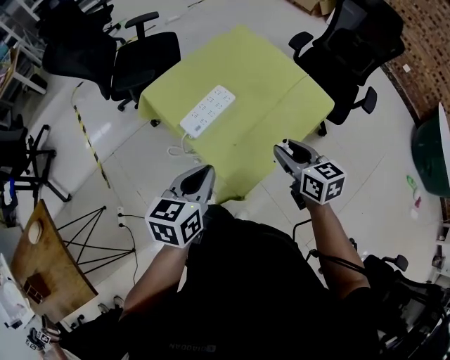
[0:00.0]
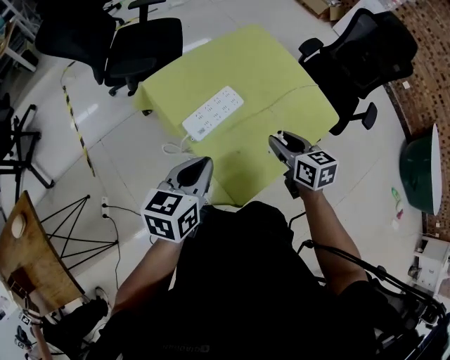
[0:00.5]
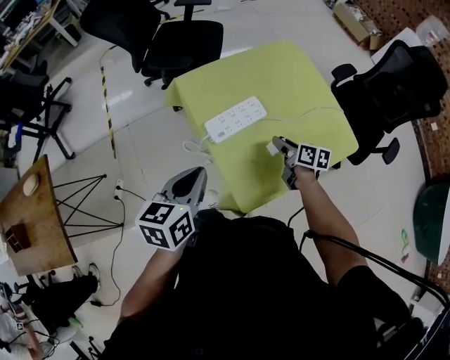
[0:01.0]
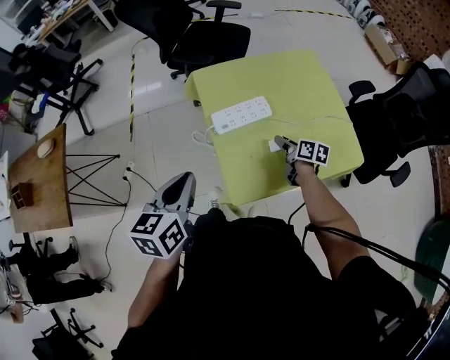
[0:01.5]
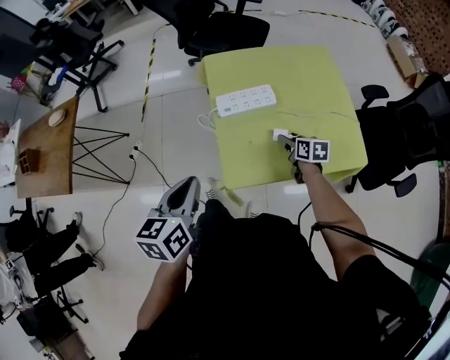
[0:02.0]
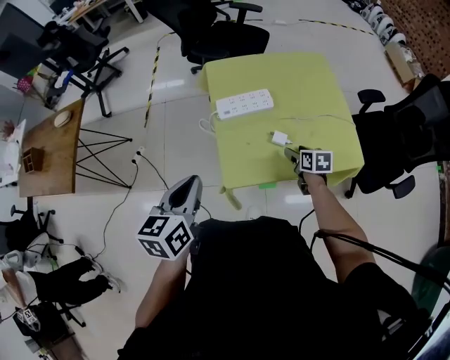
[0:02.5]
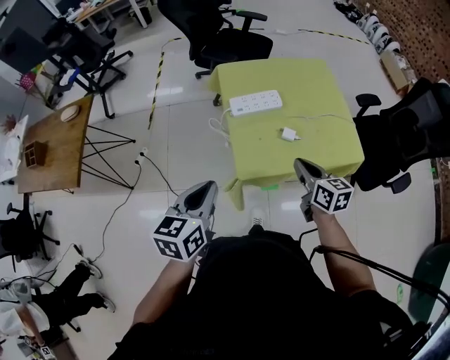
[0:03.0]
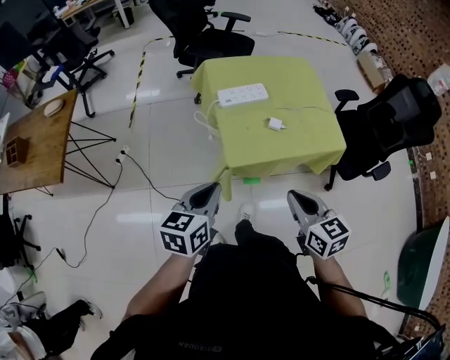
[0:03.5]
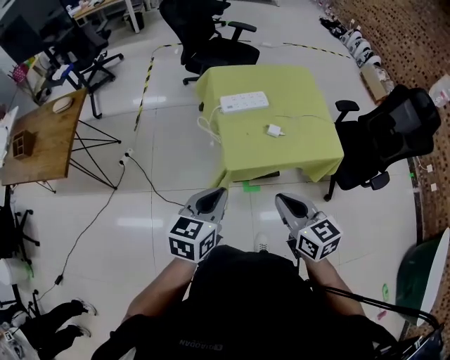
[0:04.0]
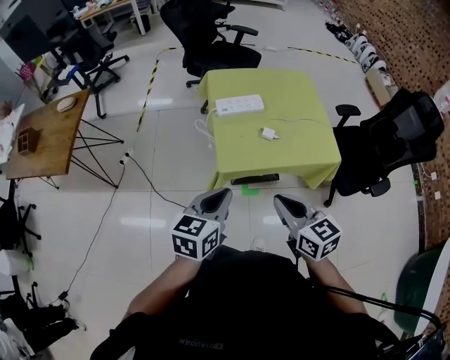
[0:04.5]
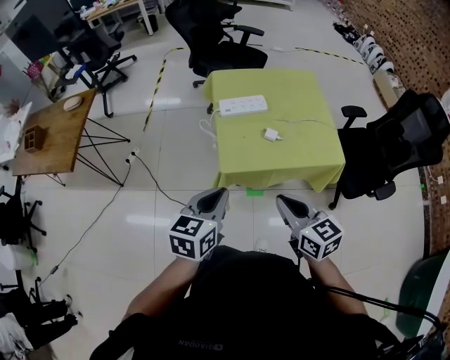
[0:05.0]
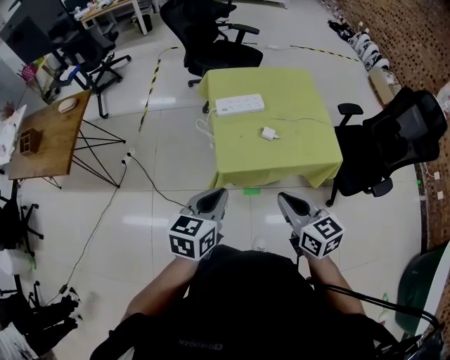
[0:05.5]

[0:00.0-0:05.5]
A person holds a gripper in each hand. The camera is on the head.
0:00.0 to 0:02.0: The right gripper goes approximately 20 cm downward, changes its angle by roughly 30 degrees, and opens. The left gripper shifts by roughly 10 cm, and rotates roughly 40 degrees.
0:02.0 to 0:03.5: The right gripper shifts about 40 cm backward and upward, rotates some 30 degrees, and closes. Meanwhile the left gripper moves backward, approximately 15 cm.
0:03.5 to 0:05.5: The left gripper shifts about 10 cm to the right.

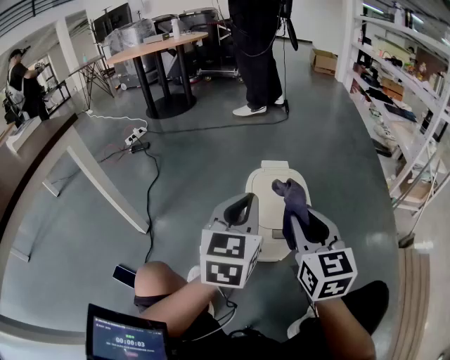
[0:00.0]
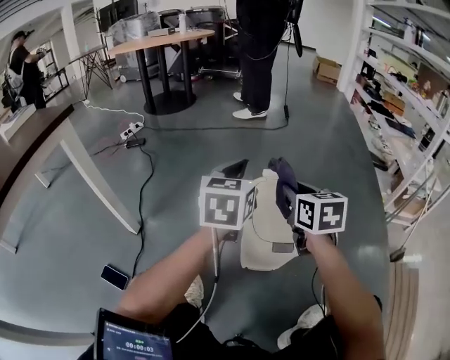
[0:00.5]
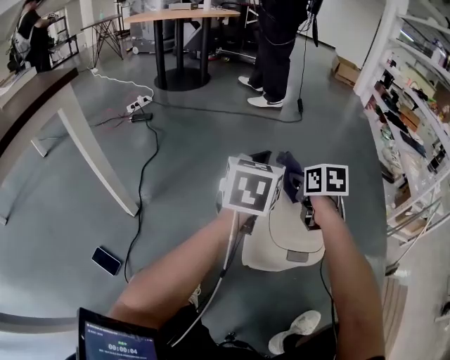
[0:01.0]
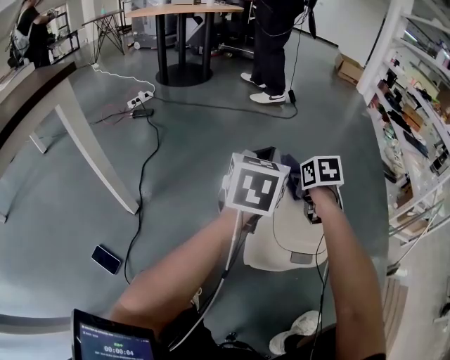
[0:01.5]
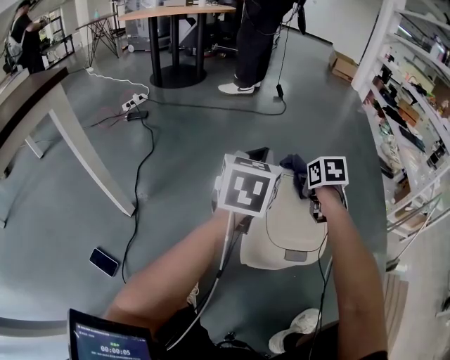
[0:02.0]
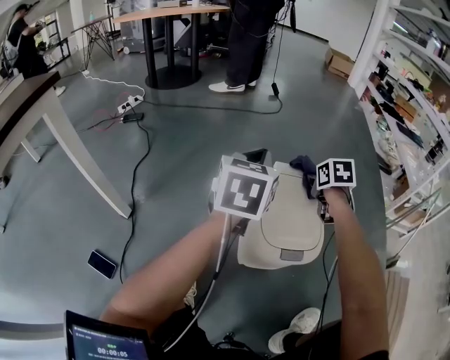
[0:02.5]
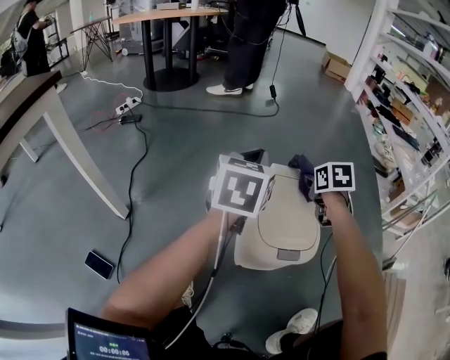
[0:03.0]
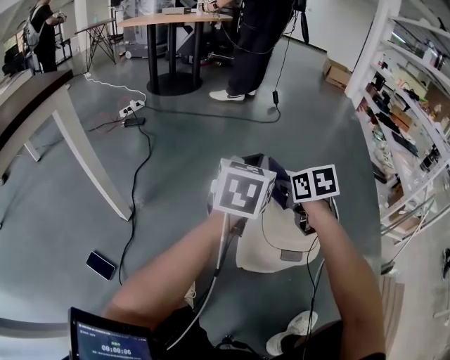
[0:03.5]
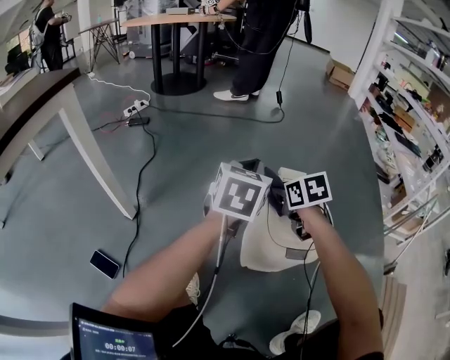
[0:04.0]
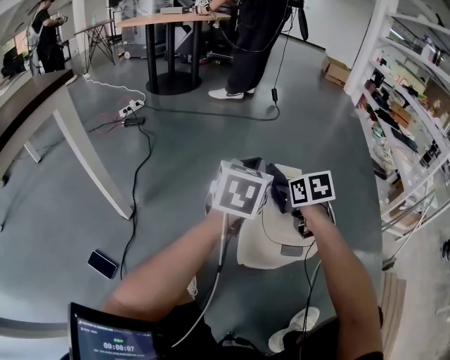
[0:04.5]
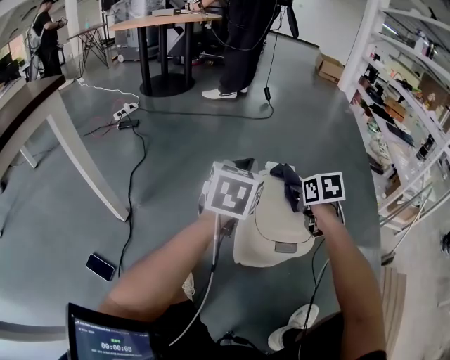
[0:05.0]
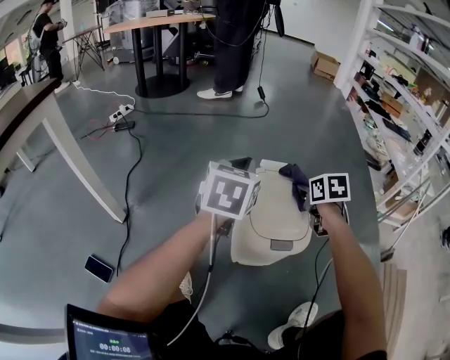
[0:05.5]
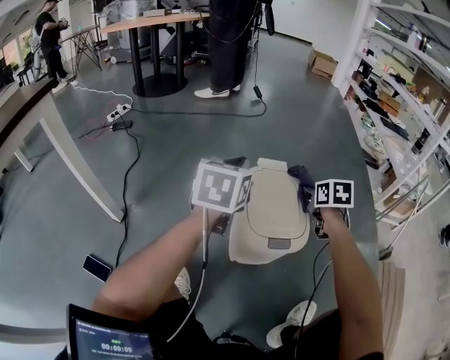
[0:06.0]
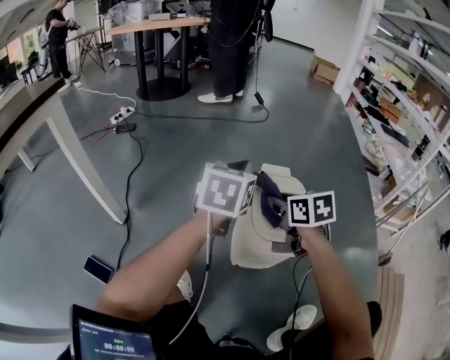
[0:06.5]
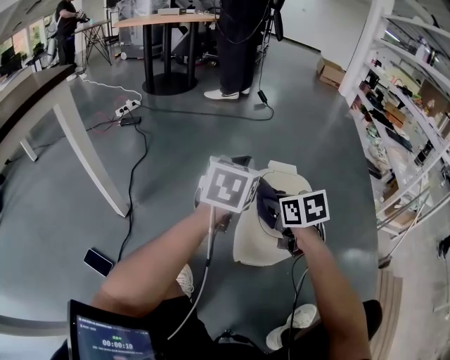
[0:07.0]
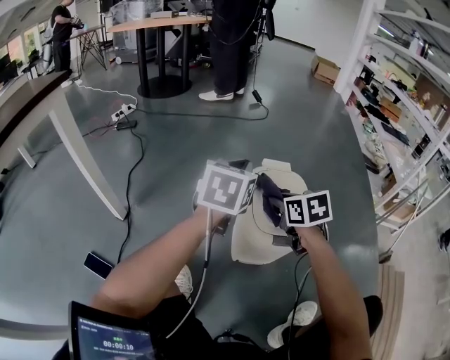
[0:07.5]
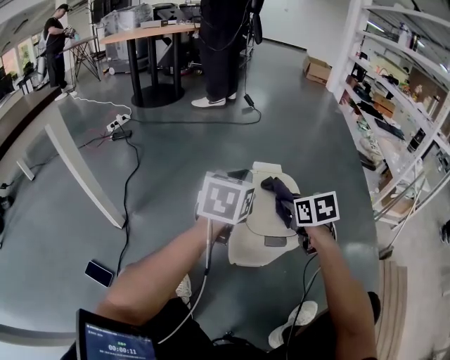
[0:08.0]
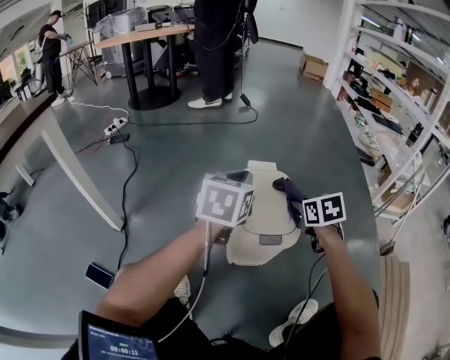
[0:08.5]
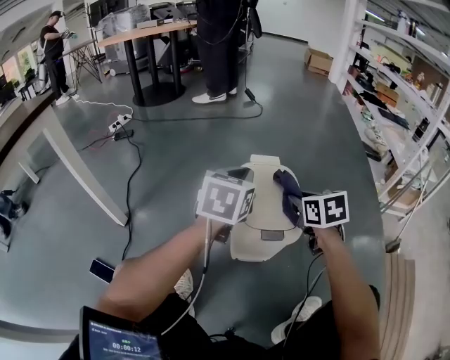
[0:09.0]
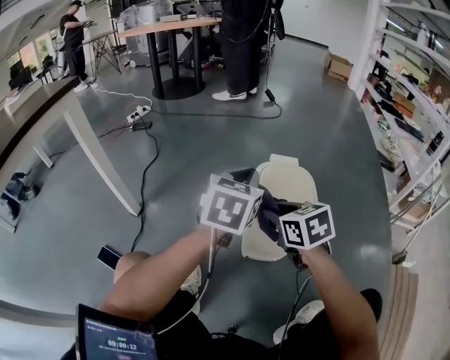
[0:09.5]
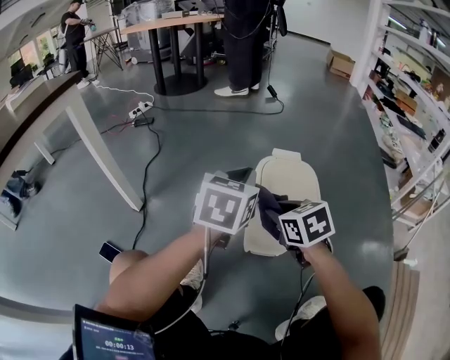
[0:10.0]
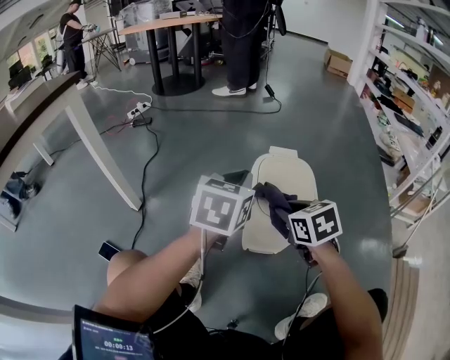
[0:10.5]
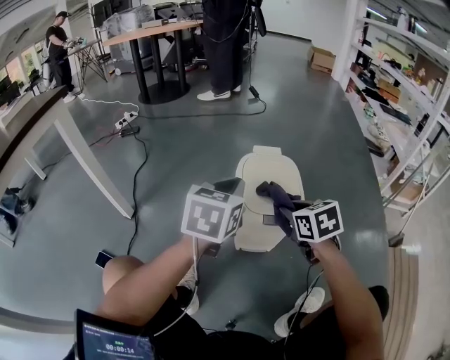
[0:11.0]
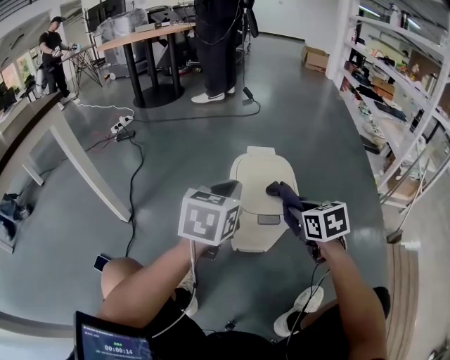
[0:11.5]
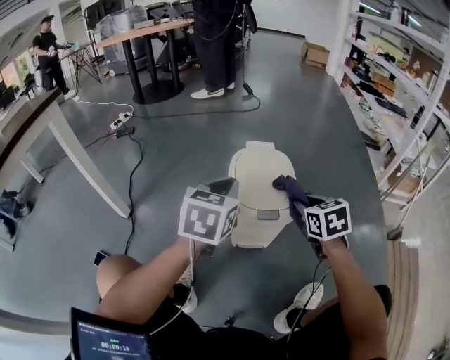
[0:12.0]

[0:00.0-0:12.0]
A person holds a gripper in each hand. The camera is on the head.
0:00.0 to 0:02.0: The right gripper shifts about 30 cm forward and downward, and points its fingers about 40 degrees further downward. The left gripper is displaced forward by approximately 15 cm.
0:02.0 to 0:04.0: The right gripper moves to the left and backward, roughly 10 cm.
0:04.0 to 0:06.0: The right gripper moves to the right, about 20 cm, and turns by approximately 20 degrees.
0:06.0 to 0:08.0: The right gripper travels to the left and backward by approximately 10 cm.
0:08.0 to 0:10.0: The left gripper travels backward by about 5 cm. The right gripper shifts roughly 15 cm to the left and backward.
0:10.0 to 0:12.0: The right gripper moves to the right, roughly 15 cm; the left gripper changes place by roughly 5 cm.

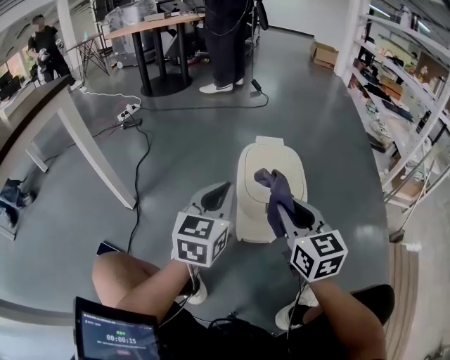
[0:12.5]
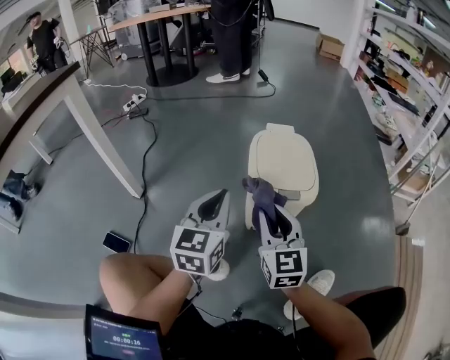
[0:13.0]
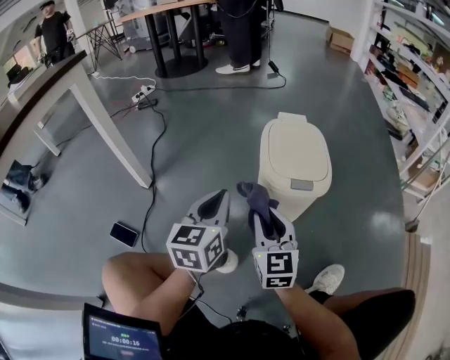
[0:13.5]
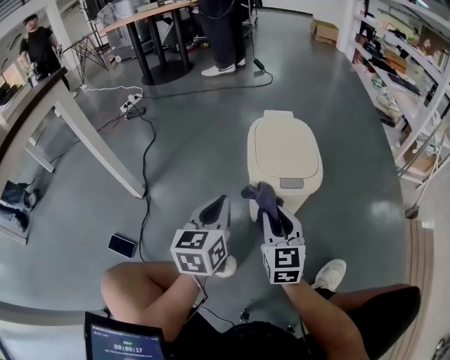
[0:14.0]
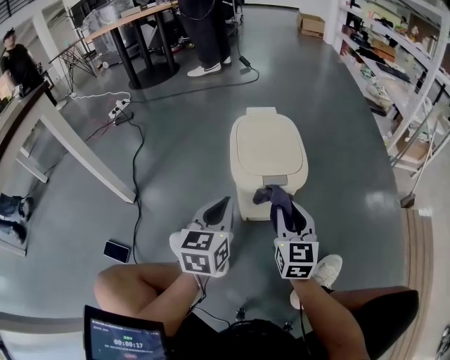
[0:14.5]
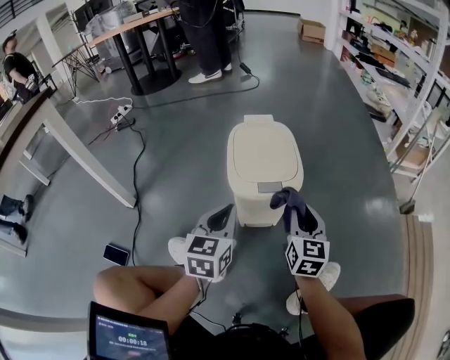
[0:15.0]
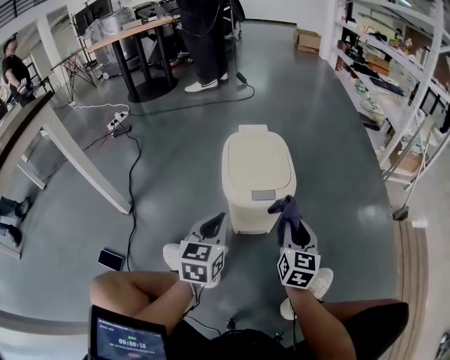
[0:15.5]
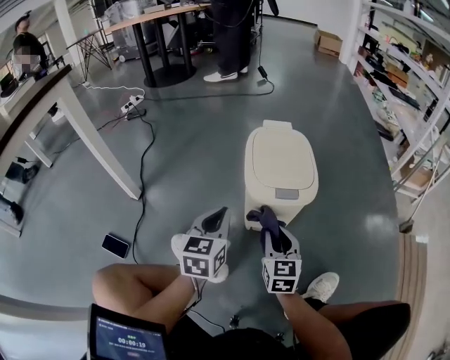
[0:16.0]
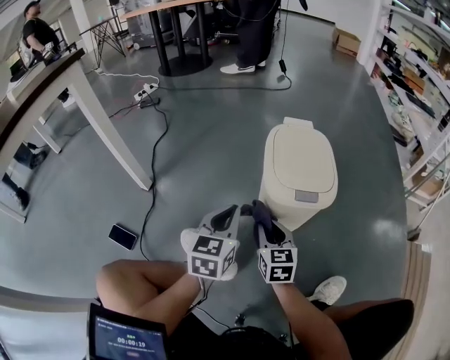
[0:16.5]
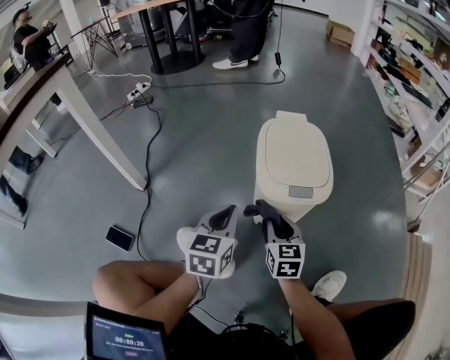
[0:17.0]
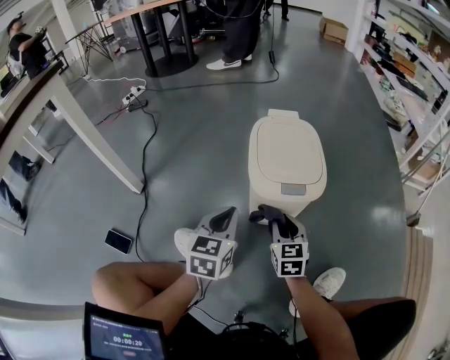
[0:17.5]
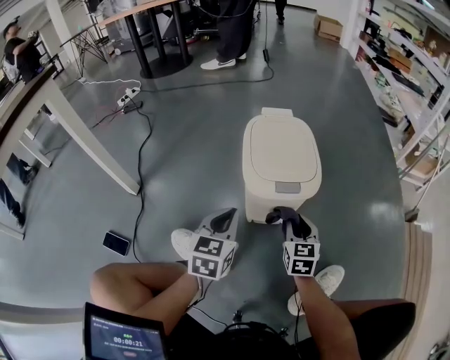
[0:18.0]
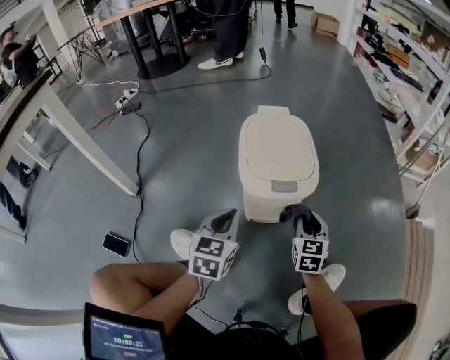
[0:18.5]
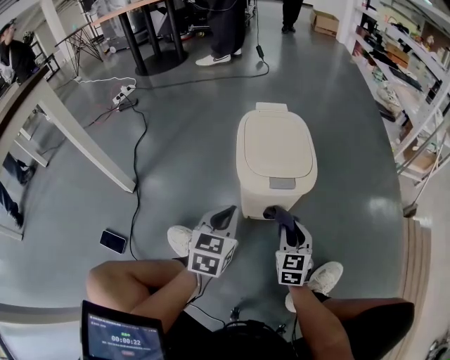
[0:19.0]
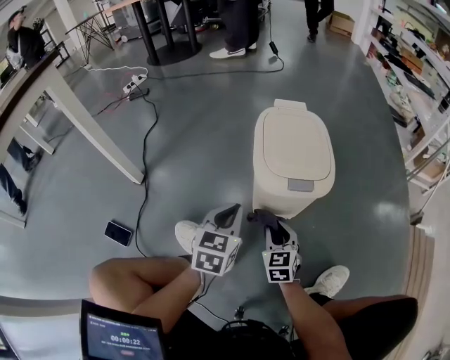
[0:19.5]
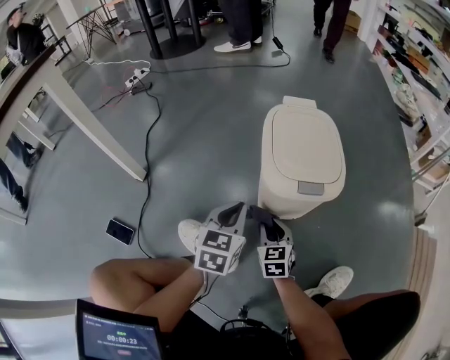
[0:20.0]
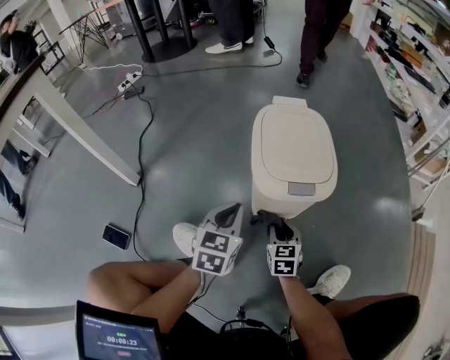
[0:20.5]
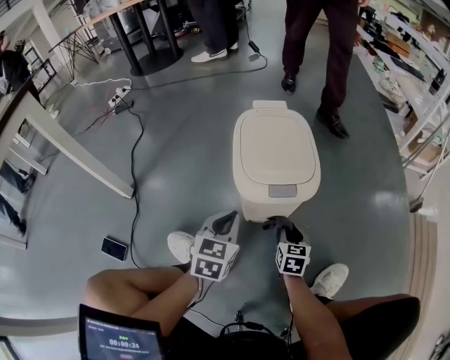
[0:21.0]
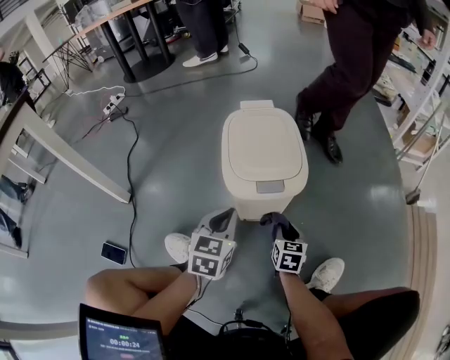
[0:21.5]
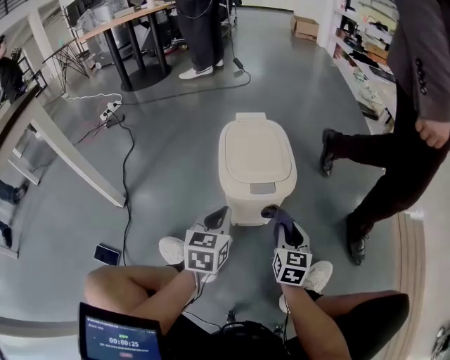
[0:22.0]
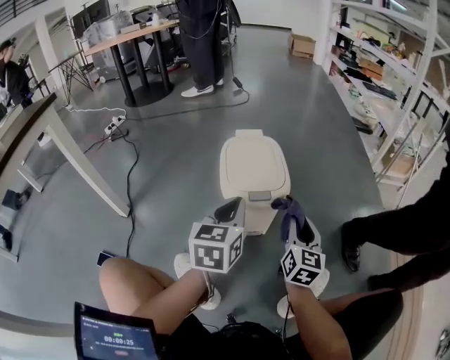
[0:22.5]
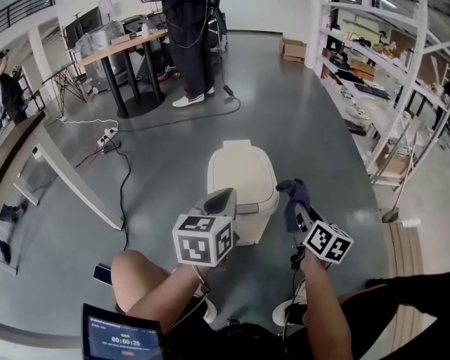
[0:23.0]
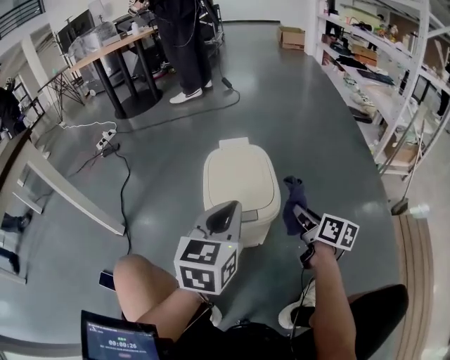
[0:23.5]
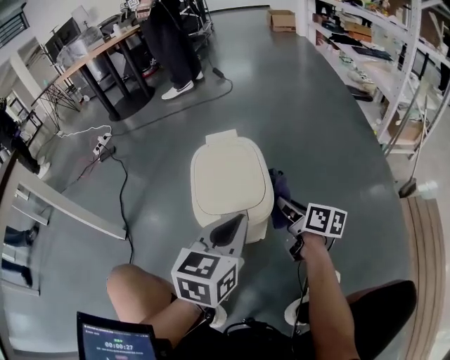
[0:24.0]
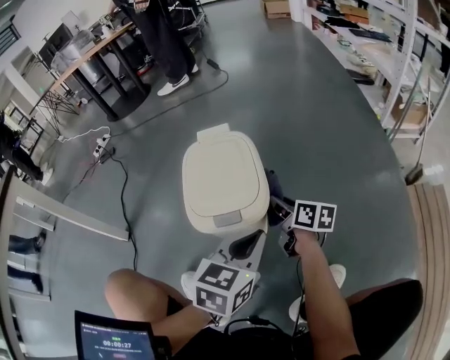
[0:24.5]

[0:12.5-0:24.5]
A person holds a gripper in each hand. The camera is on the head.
0:12.5 to 0:14.5: Both grippers travel together downward, some 10 cm. The right gripper travels to the left and back again, some 10 cm each way.
0:14.5 to 0:16.5: The right gripper heads to the left and downward, covering about 15 cm; the left gripper moves to the left, about 5 cm.
0:16.5 to 0:18.5: The left gripper heads to the right, covering some 5 cm, while the right gripper moves to the right, roughly 20 cm.
0:18.5 to 0:20.5: The right gripper moves to the left and downward, roughly 15 cm.
0:20.5 to 0:22.5: The two grippers go approximately 20 cm upward and to the right. The right gripper swivels approximately 30 degrees.
0:22.5 to 0:24.5: The right gripper goes some 15 cm forward and downward, and changes its angle by roughly 50 degrees; the left gripper moves to the right and downward, roughly 15 cm, and turns by approximately 20 degrees.
